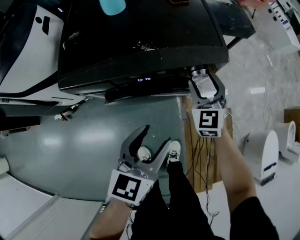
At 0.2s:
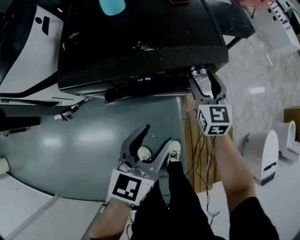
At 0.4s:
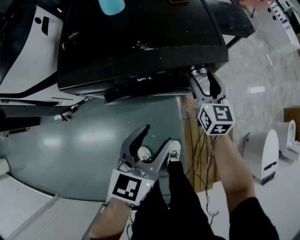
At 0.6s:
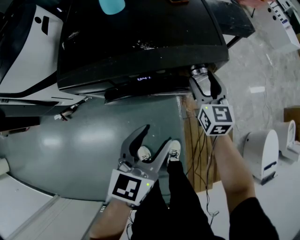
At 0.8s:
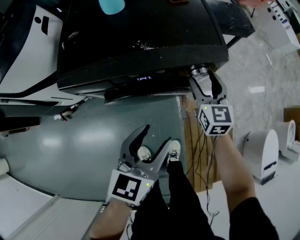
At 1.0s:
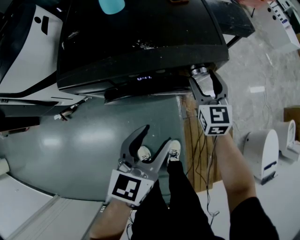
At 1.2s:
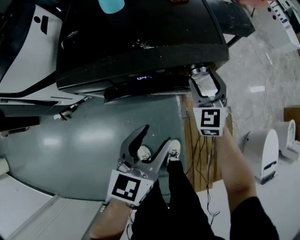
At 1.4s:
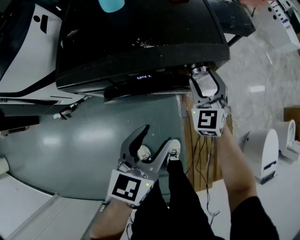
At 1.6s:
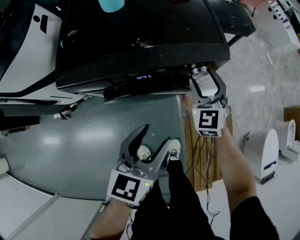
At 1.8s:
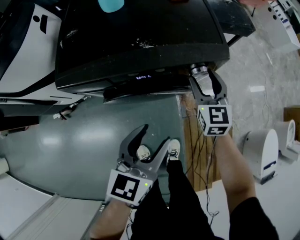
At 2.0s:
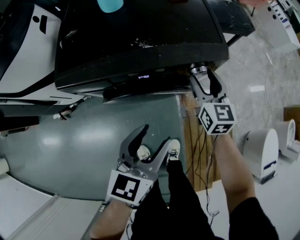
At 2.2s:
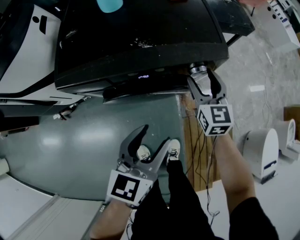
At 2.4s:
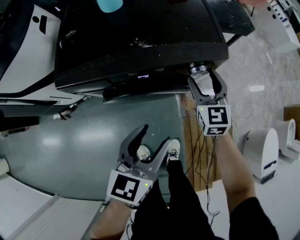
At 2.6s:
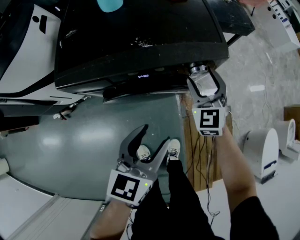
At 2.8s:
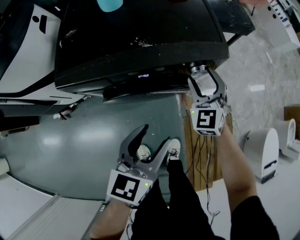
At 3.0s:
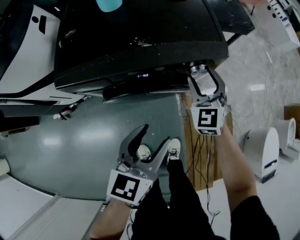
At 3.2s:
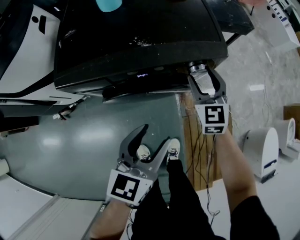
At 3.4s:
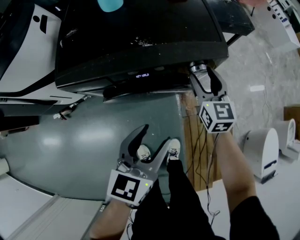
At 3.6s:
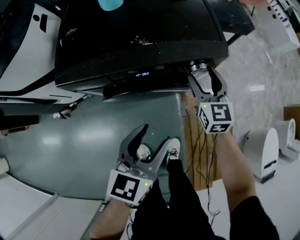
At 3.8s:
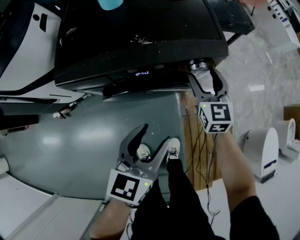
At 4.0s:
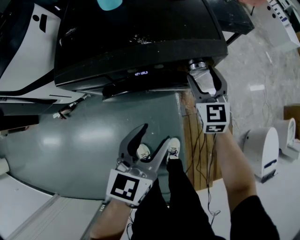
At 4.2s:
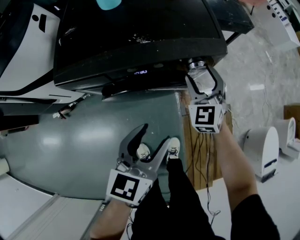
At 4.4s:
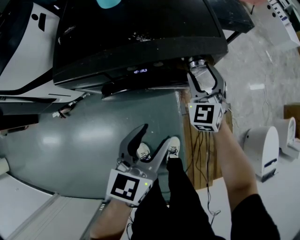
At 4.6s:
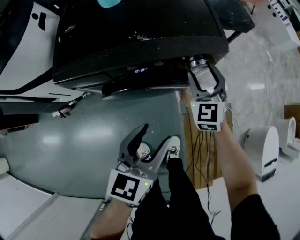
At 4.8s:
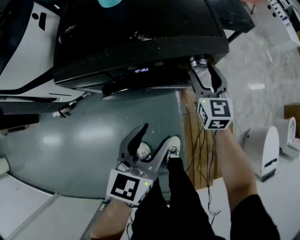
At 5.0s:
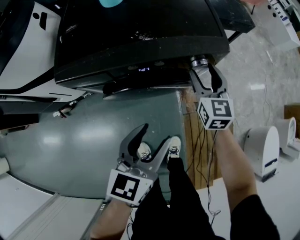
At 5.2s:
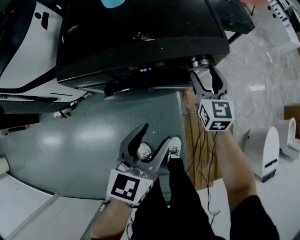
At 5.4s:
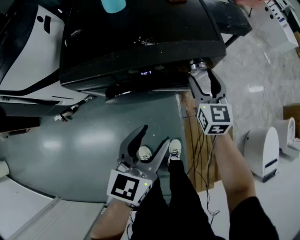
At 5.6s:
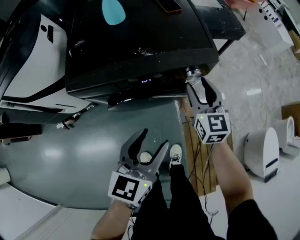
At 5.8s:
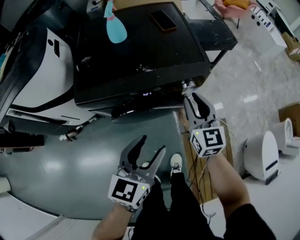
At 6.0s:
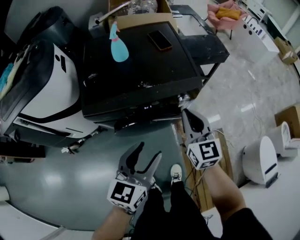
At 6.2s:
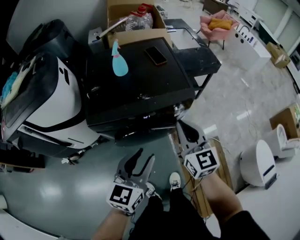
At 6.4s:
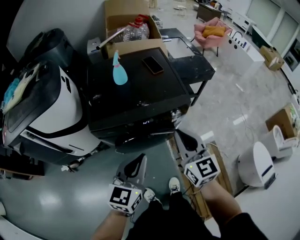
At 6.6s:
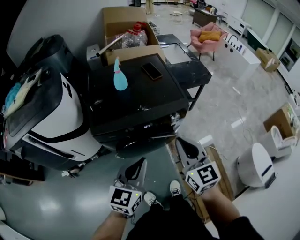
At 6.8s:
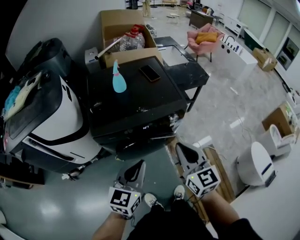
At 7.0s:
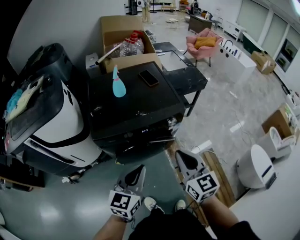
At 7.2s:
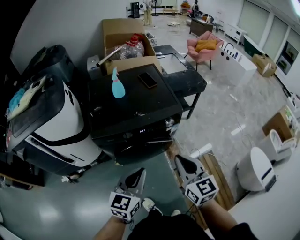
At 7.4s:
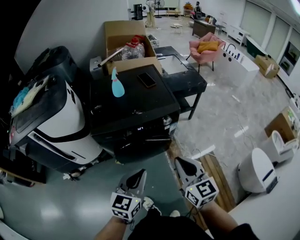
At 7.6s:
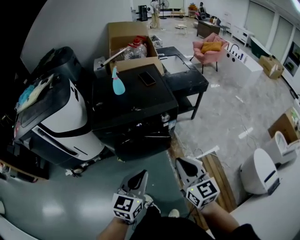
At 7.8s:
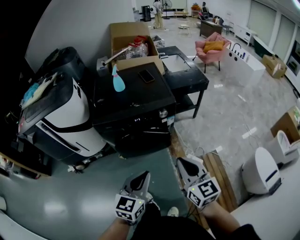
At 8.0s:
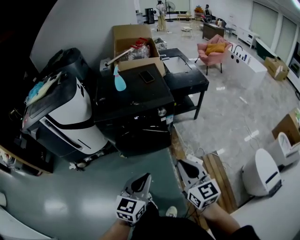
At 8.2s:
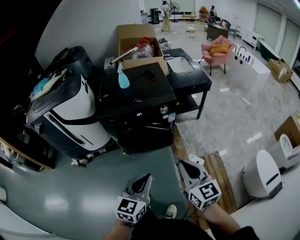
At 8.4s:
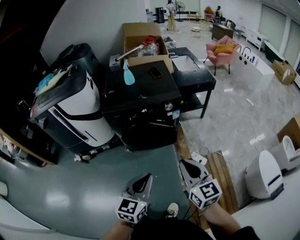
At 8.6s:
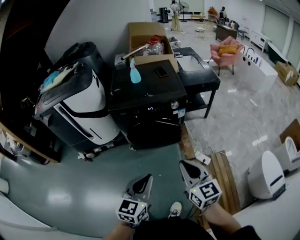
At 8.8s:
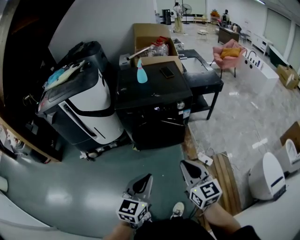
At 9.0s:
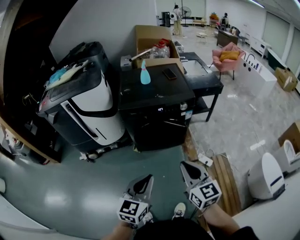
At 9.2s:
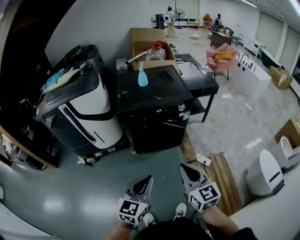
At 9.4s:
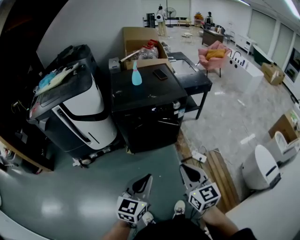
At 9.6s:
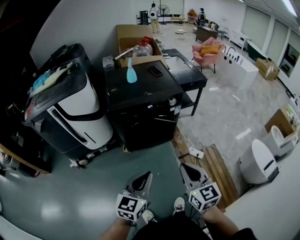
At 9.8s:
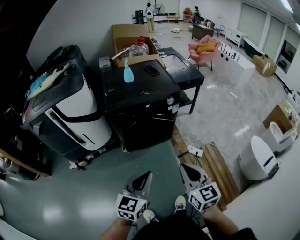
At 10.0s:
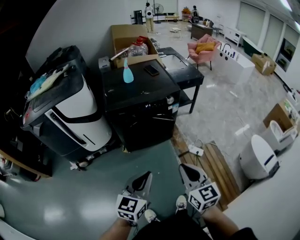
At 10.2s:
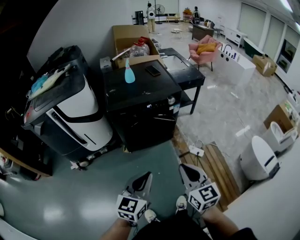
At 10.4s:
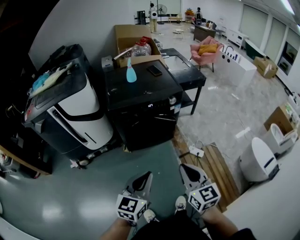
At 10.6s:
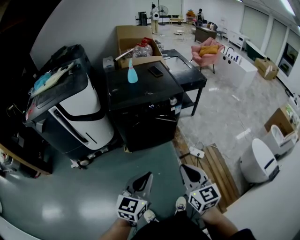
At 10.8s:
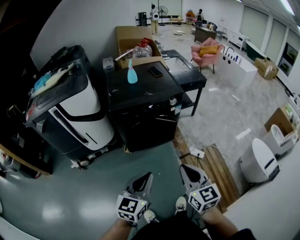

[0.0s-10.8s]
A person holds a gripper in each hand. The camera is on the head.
4.6s to 6.2s: The right gripper heads upward and backward, covering about 25 cm, turns by some 30 degrees, and closes. The left gripper travels upward by about 15 cm.
6.2s to 7.8s: Both grippers travel together backward and to the right, roughly 25 cm. The left gripper closes up.
7.8s to 9.2s: The two grippers go approximately 20 cm backward and to the left.
9.2s to 10.8s: There are only small adjustments of the grippers.

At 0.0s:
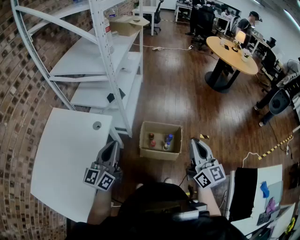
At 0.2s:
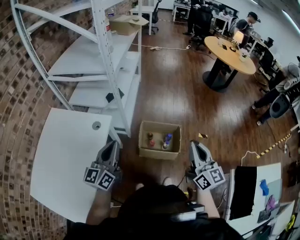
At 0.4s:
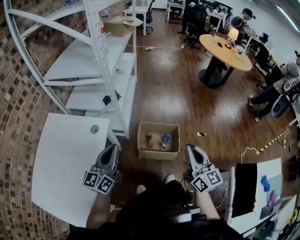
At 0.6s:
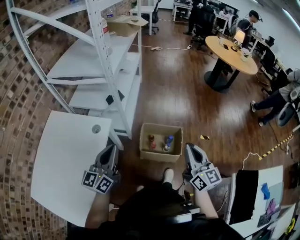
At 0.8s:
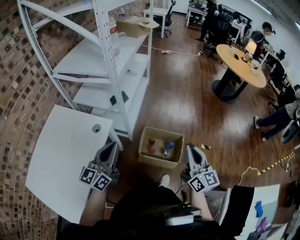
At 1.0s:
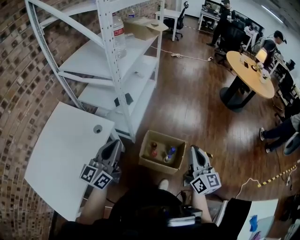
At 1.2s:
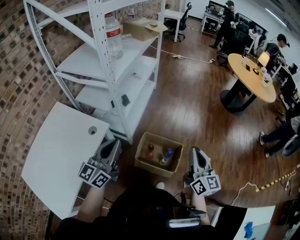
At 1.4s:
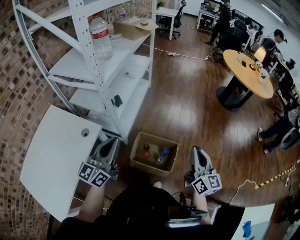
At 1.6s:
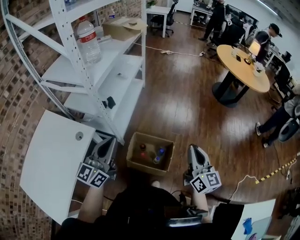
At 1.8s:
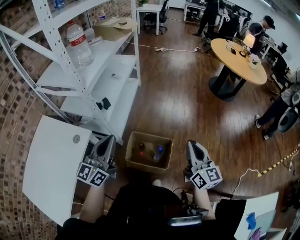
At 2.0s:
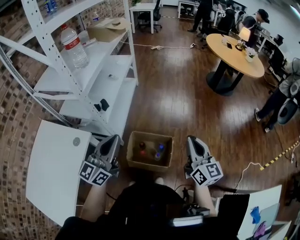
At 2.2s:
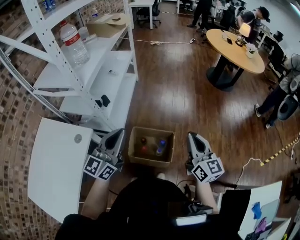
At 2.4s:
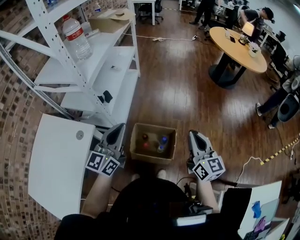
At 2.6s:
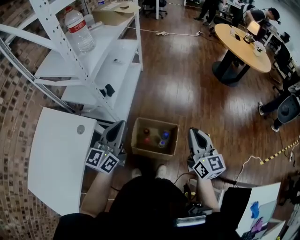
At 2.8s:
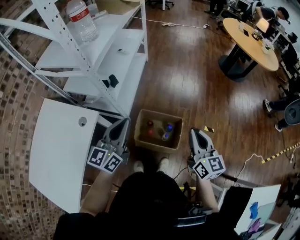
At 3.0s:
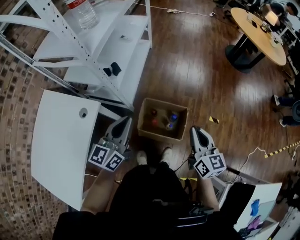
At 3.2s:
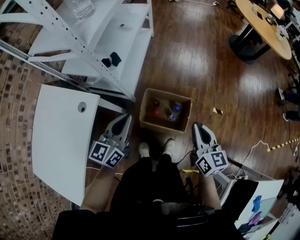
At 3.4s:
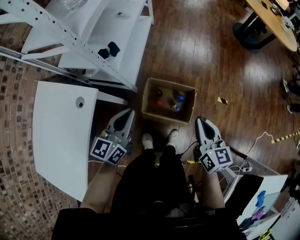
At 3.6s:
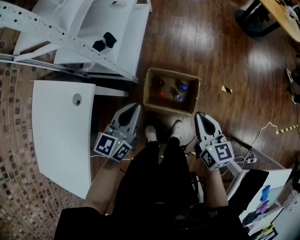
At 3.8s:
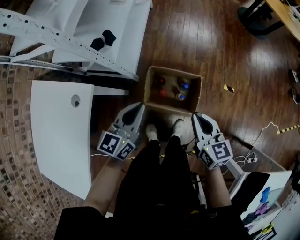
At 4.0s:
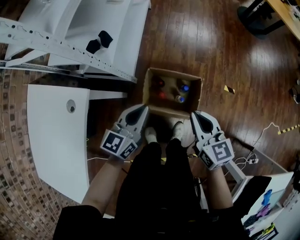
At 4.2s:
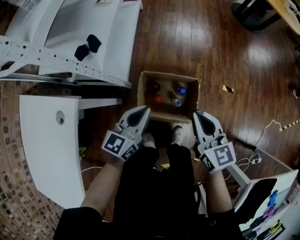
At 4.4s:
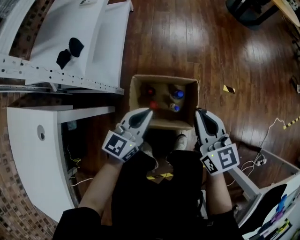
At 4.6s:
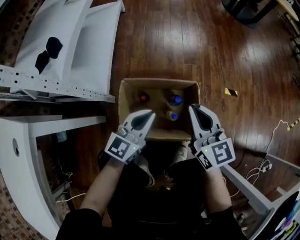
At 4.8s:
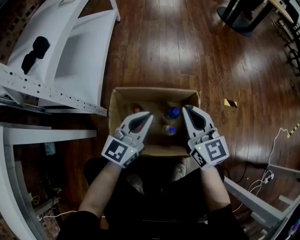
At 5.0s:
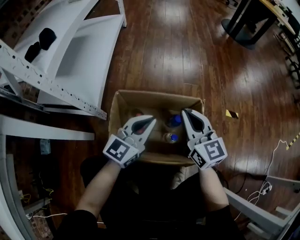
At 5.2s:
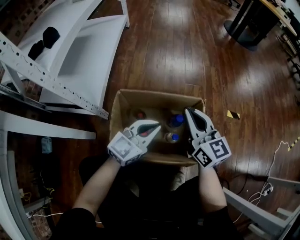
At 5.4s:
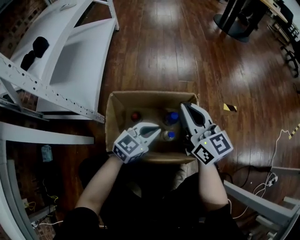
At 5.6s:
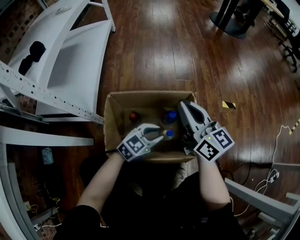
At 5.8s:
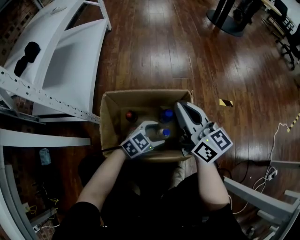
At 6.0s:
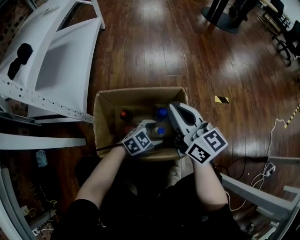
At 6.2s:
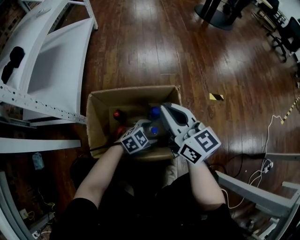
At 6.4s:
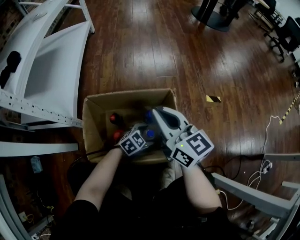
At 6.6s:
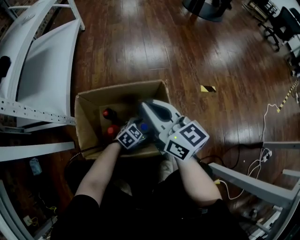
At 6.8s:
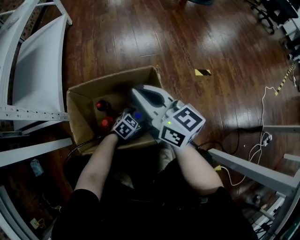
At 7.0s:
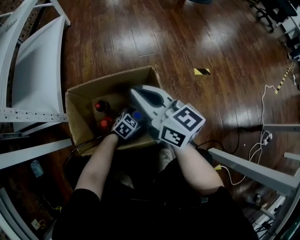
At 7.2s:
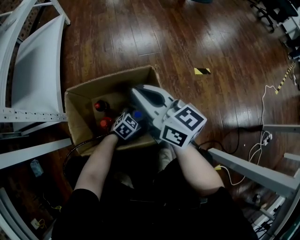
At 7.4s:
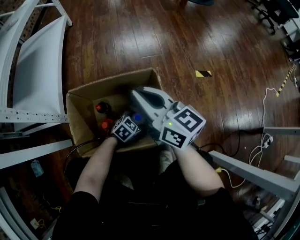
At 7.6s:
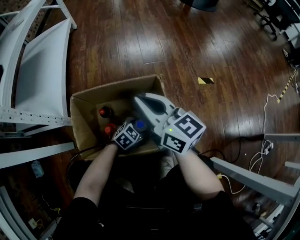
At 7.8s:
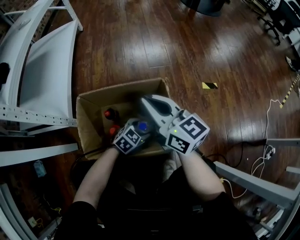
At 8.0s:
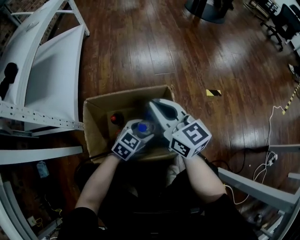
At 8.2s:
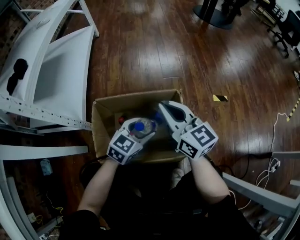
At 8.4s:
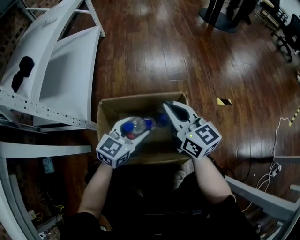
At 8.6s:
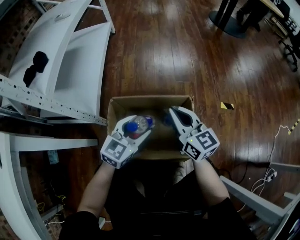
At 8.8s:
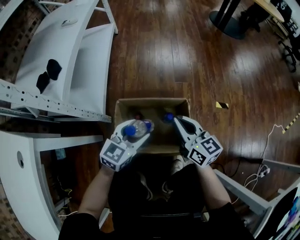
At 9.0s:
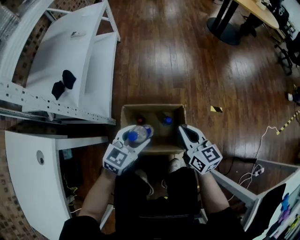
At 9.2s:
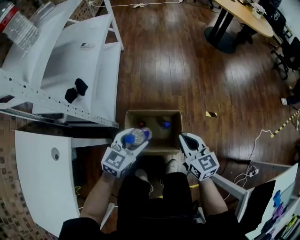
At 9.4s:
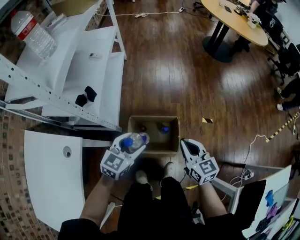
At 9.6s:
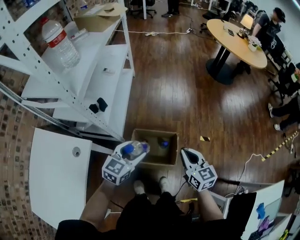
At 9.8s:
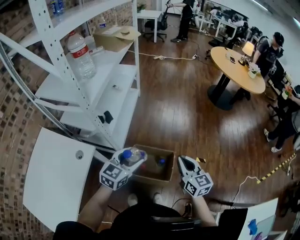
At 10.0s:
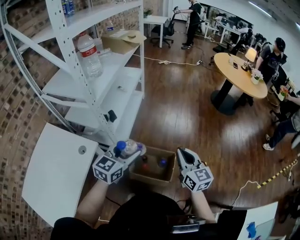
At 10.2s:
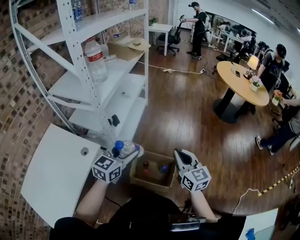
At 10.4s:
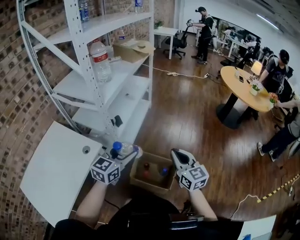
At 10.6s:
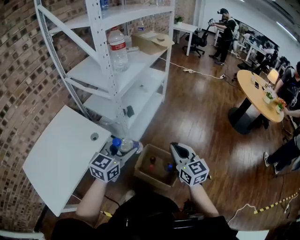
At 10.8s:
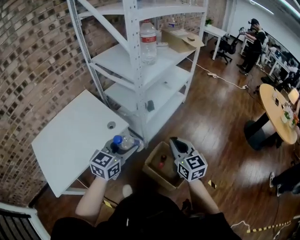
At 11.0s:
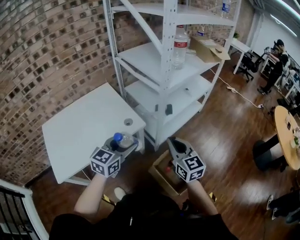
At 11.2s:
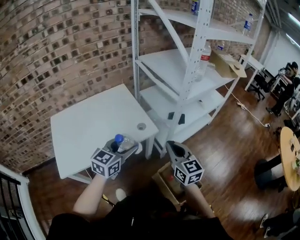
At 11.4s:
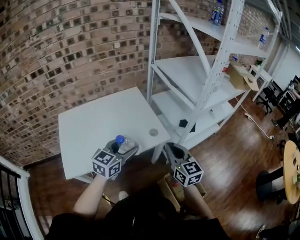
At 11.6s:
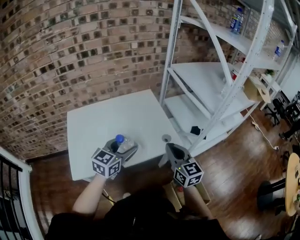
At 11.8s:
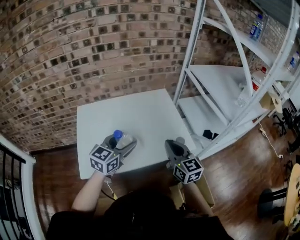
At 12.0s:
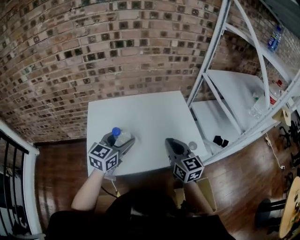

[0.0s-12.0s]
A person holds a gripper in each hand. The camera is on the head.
0.0s to 1.6s: The left gripper travels to the right and forward by about 20 cm. The right gripper travels forward and to the right by some 20 cm.
1.6s to 3.0s: The left gripper goes about 10 cm downward; the right gripper shifts roughly 10 cm downward and to the left.
3.0s to 4.4s: Both grippers travel together downward, roughly 30 cm. The left gripper turns by about 30 degrees.
4.4s to 6.0s: The right gripper is displaced downward by about 20 cm. Meanwhile the left gripper moves downward and to the right, roughly 40 cm, rotates roughly 50 degrees, and opens up.
6.0s to 7.6s: The left gripper shifts roughly 10 cm downward.
7.6s to 9.0s: The right gripper is displaced upward by some 15 cm. The left gripper is displaced upward by roughly 50 cm, and rotates some 30 degrees.
9.0s to 10.4s: The grippers both shift upward by roughly 40 cm. The right gripper swivels about 30 degrees, while the left gripper swivels some 30 degrees.
10.4s to 12.0s: The pair of grippers is taken roughly 60 cm. The left gripper swivels about 60 degrees; the right gripper rotates some 60 degrees.

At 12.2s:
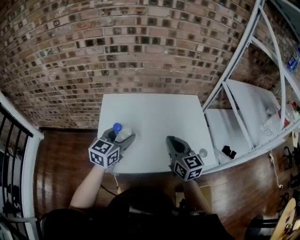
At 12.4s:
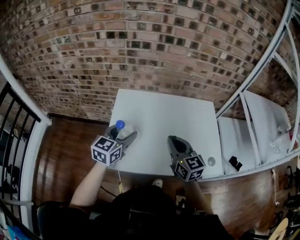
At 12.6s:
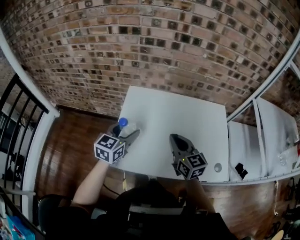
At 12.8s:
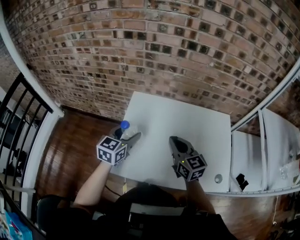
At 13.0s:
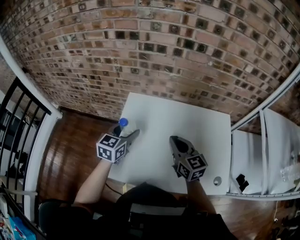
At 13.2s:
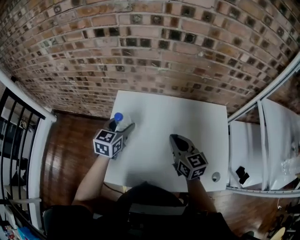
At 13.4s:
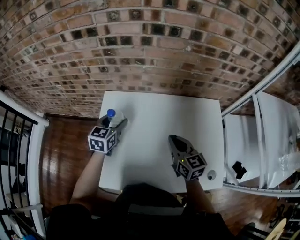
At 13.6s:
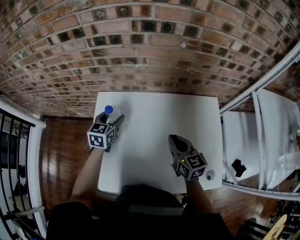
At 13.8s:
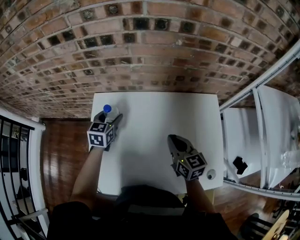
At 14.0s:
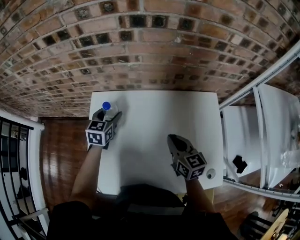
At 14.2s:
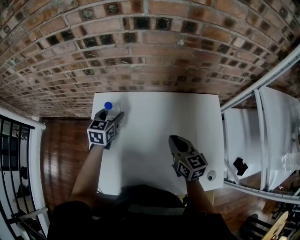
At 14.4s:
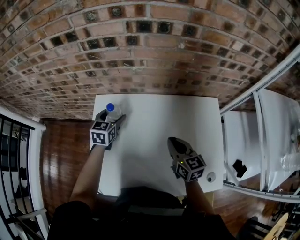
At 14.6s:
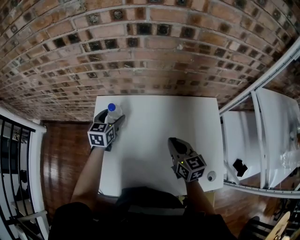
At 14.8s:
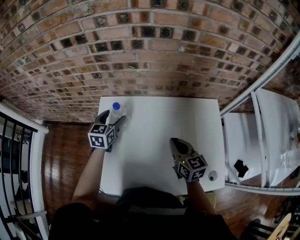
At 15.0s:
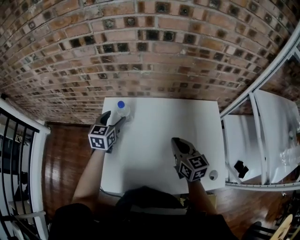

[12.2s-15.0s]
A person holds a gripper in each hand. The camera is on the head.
12.2s to 13.6s: Both grippers move forward and downward, roughly 25 cm. The left gripper changes its angle by about 20 degrees.
13.6s to 15.0s: The grippers make only small movements.
